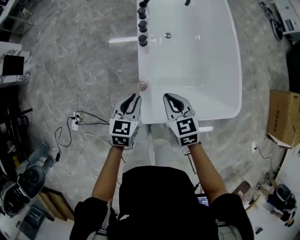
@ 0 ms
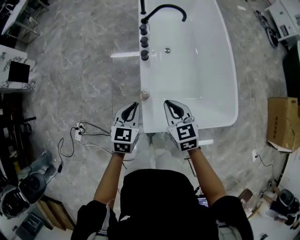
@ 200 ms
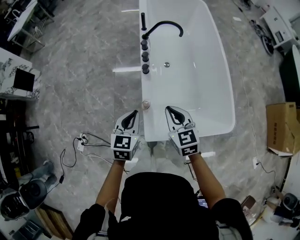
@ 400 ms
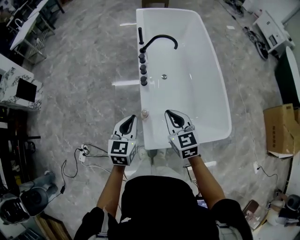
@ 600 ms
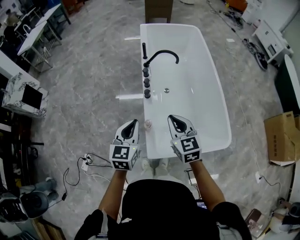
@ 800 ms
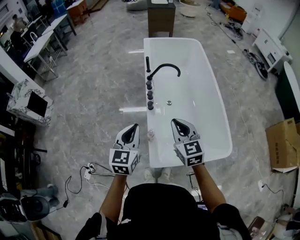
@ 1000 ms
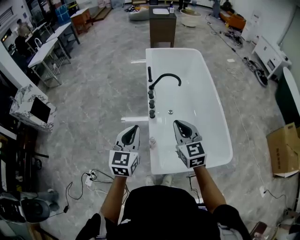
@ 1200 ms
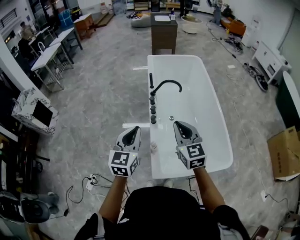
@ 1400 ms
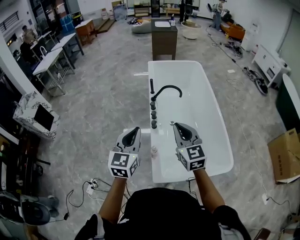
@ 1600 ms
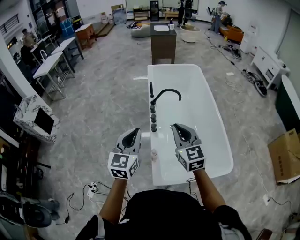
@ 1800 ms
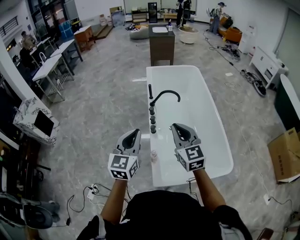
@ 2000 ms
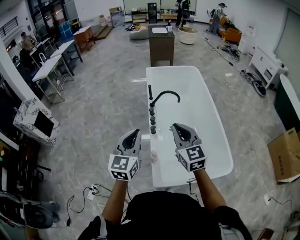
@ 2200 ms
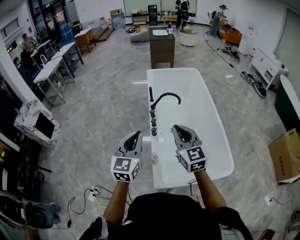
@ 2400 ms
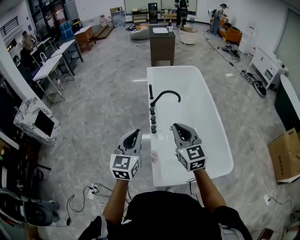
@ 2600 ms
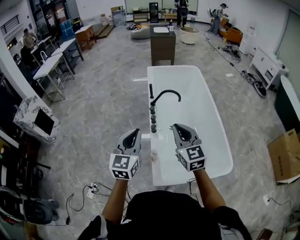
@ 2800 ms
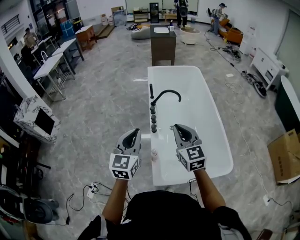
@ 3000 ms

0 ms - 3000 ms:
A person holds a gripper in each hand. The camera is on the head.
0 ms - 1600 ms: Both grippers travel together upward, roughly 35 cm. The right gripper changes its angle by roughly 30 degrees. Meanwhile the left gripper turns by roughly 30 degrees.
1600 ms - 3000 ms: The grippers move only a little.

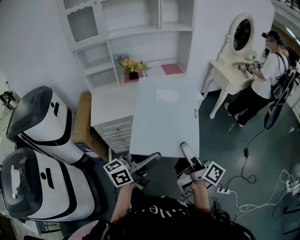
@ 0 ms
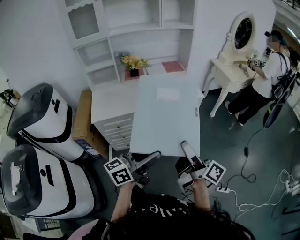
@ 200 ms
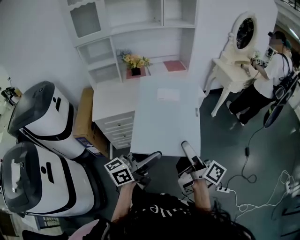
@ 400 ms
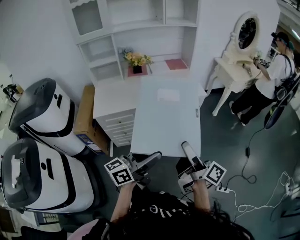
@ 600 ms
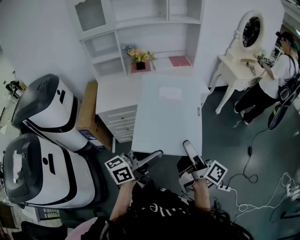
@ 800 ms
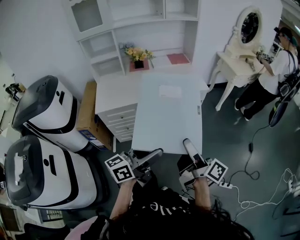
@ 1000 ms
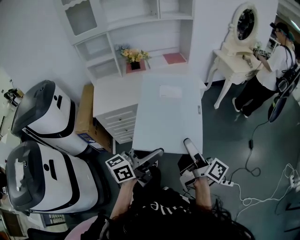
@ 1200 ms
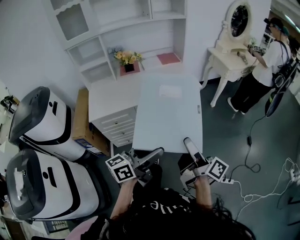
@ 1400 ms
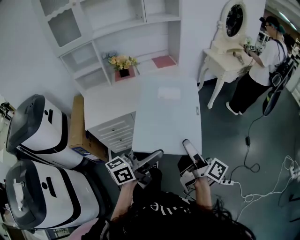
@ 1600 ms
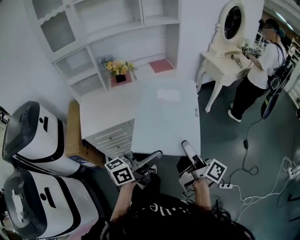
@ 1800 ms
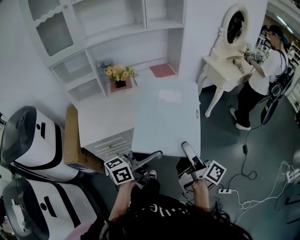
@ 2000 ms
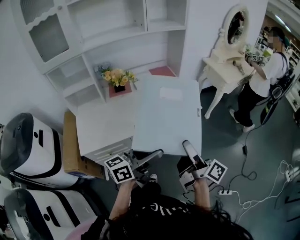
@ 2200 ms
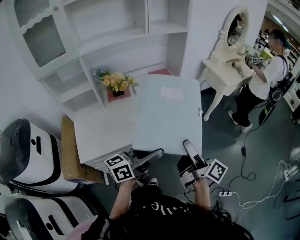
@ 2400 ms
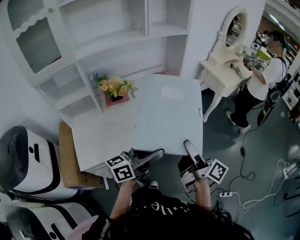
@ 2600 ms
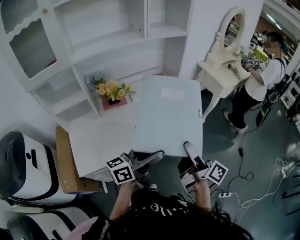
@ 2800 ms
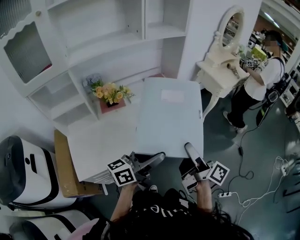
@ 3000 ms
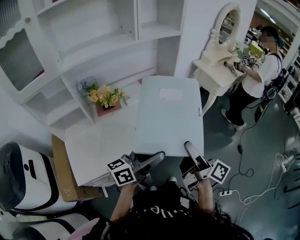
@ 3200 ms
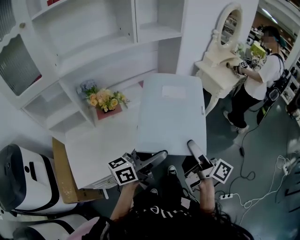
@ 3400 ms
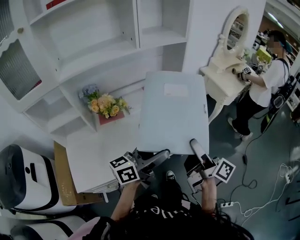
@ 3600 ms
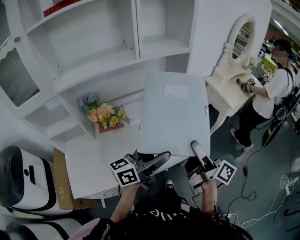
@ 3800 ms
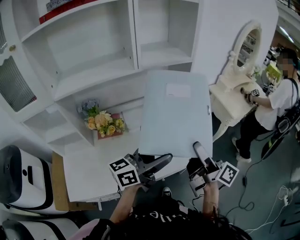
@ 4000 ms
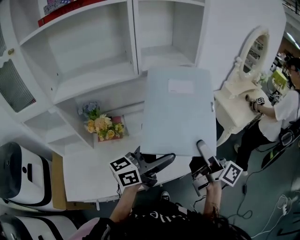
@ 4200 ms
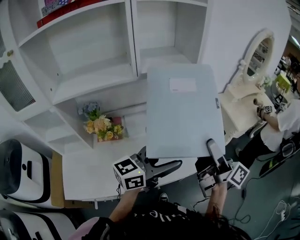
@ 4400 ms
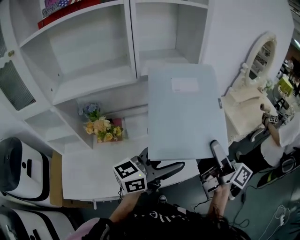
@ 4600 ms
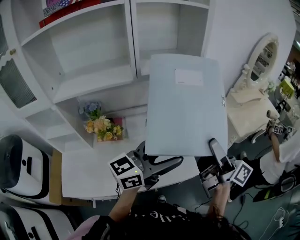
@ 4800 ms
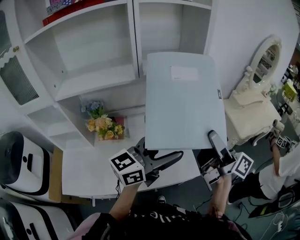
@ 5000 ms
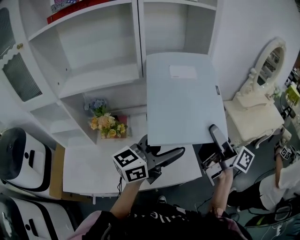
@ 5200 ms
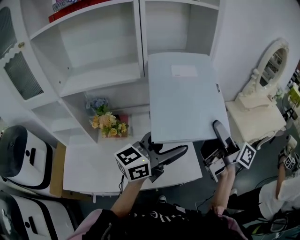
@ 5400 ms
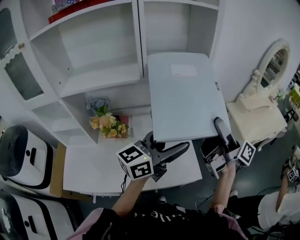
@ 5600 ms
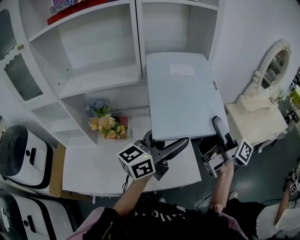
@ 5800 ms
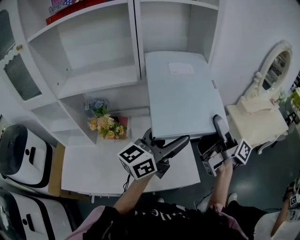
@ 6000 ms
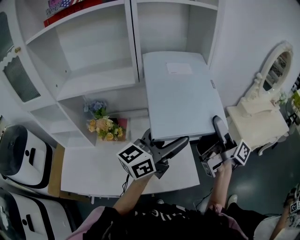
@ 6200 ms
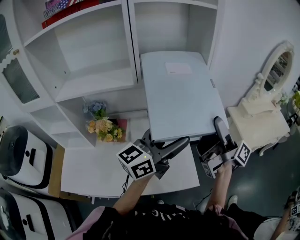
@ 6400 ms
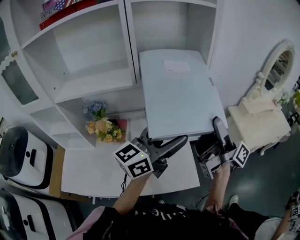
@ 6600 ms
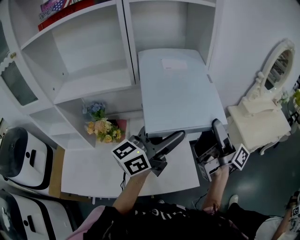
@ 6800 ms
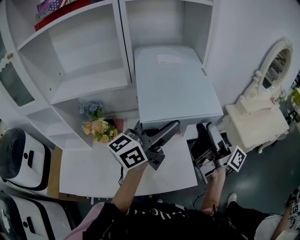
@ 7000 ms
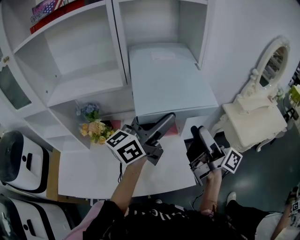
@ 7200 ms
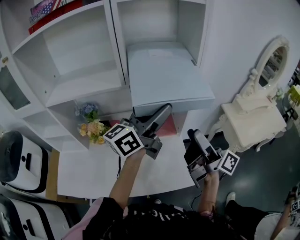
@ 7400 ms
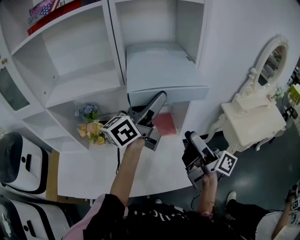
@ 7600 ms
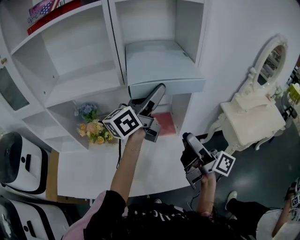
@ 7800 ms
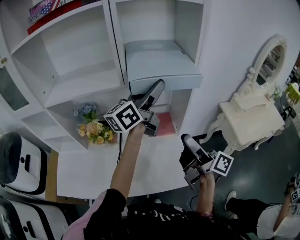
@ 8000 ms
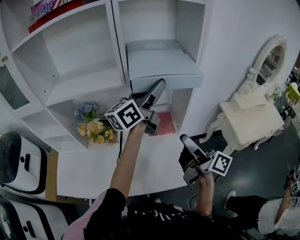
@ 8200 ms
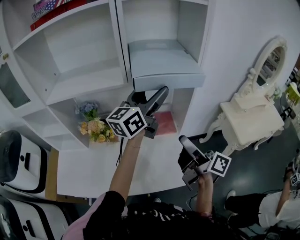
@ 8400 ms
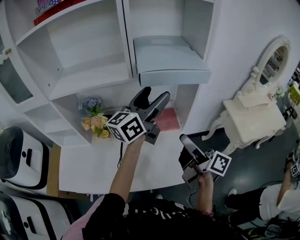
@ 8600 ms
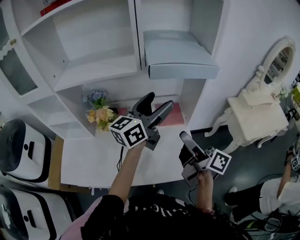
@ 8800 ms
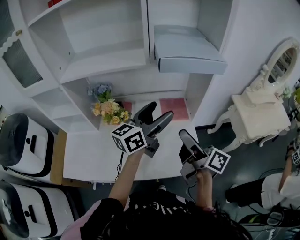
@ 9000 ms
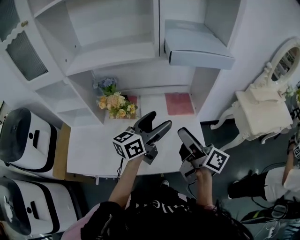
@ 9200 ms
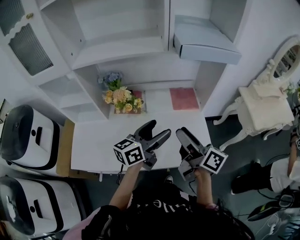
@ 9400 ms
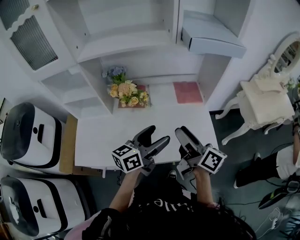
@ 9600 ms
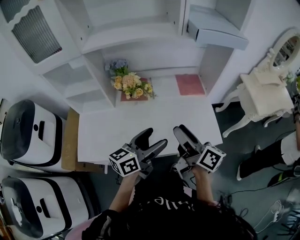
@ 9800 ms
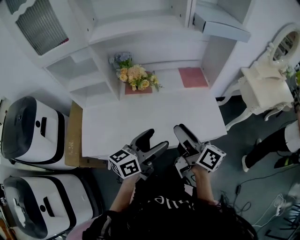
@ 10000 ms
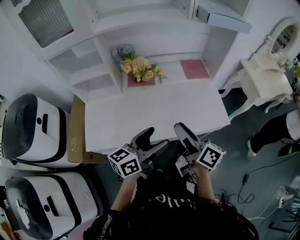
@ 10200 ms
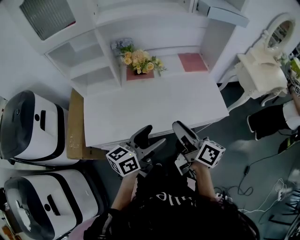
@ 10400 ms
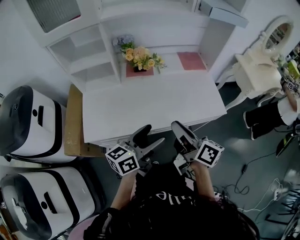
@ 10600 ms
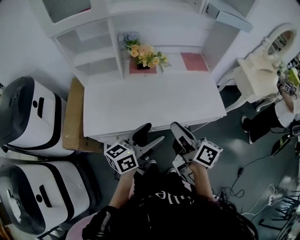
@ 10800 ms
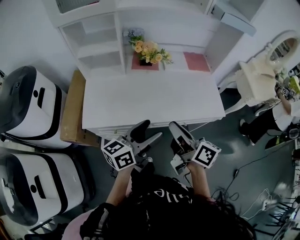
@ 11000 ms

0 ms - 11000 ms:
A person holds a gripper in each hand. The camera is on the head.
0 ms - 1600 ms: The right gripper moves about 5 cm; the left gripper ends up approximately 5 cm from where it was.
1600 ms - 3200 ms: The right gripper heads forward and to the left, covering some 35 cm. The left gripper heads forward, covering some 35 cm.
3200 ms - 4800 ms: The grippers both shift forward and upward by approximately 30 cm. The left gripper rotates about 30 degrees, while the right gripper turns by roughly 20 degrees.
4800 ms - 6200 ms: The two grippers go about 10 cm forward.
6200 ms - 7800 ms: The right gripper shifts some 5 cm downward. Meanwhile the left gripper travels forward and upward by about 15 cm.
7800 ms - 9400 ms: The right gripper shifts approximately 20 cm to the left, backward and downward. Meanwhile the left gripper heads downward, backward and to the left, covering some 30 cm, and rotates approximately 20 degrees.
9400 ms - 11000 ms: The two grippers go some 30 cm backward and to the left. The right gripper closes.

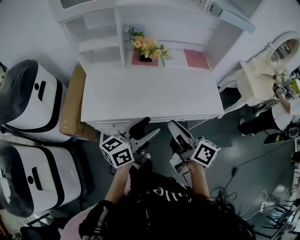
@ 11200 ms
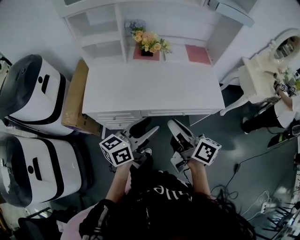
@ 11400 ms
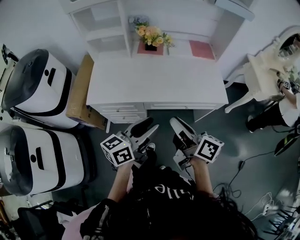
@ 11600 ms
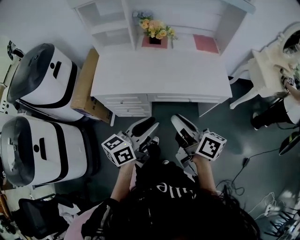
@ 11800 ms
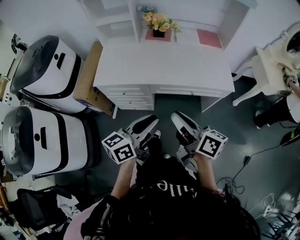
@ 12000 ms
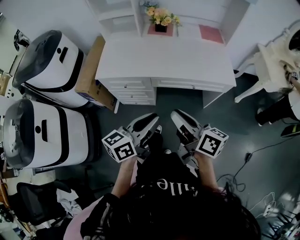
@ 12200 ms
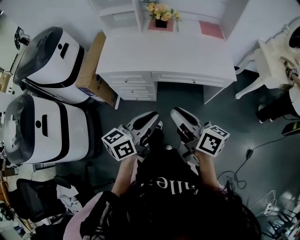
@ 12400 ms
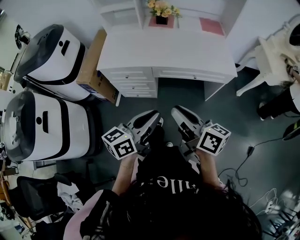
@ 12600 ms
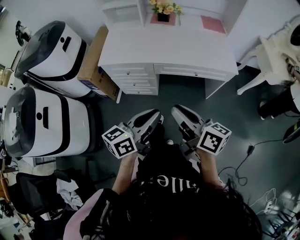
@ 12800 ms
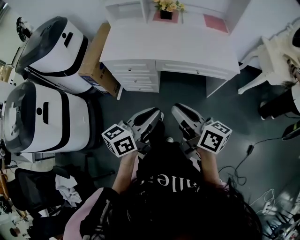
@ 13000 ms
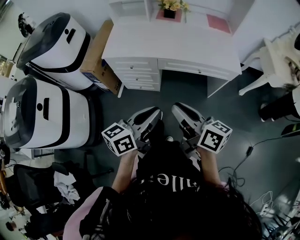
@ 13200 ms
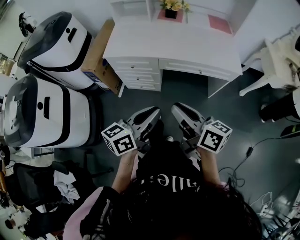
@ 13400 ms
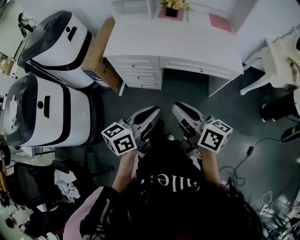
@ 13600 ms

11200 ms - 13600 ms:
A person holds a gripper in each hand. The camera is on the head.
11200 ms - 12400 ms: The two grippers go about 20 cm backward. The left gripper closes up.
12400 ms - 13600 ms: Both grippers travel together backward, some 5 cm.

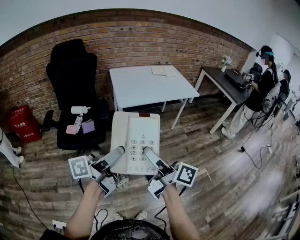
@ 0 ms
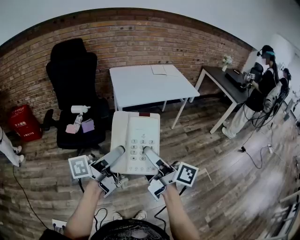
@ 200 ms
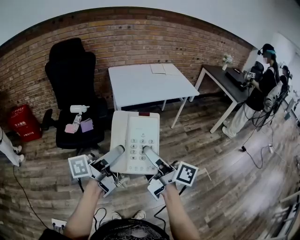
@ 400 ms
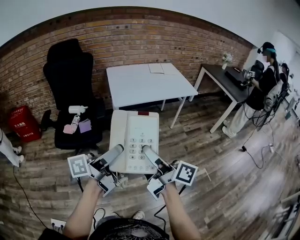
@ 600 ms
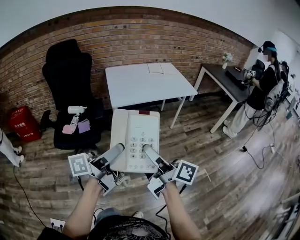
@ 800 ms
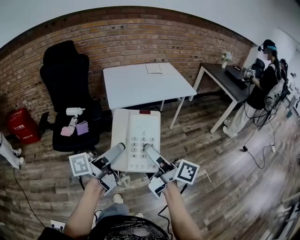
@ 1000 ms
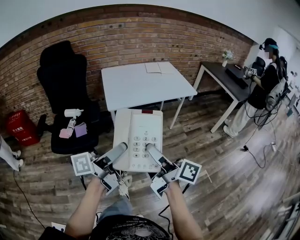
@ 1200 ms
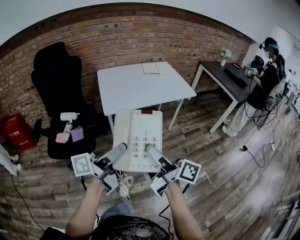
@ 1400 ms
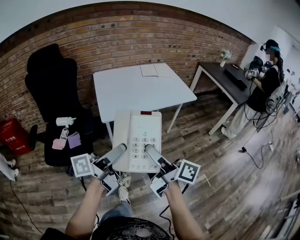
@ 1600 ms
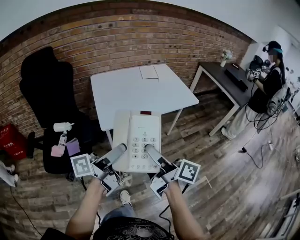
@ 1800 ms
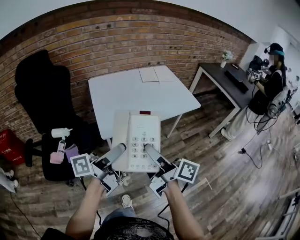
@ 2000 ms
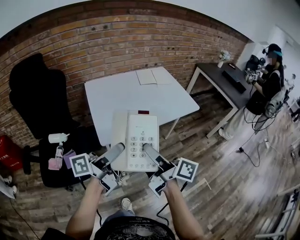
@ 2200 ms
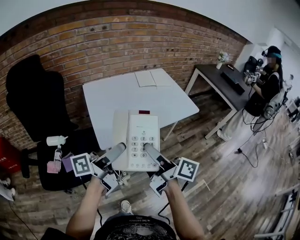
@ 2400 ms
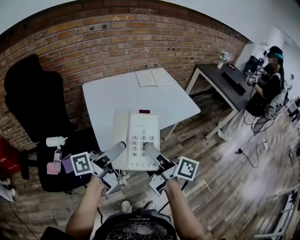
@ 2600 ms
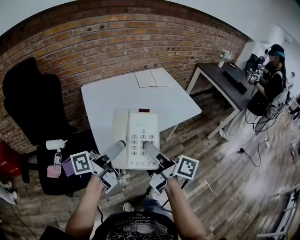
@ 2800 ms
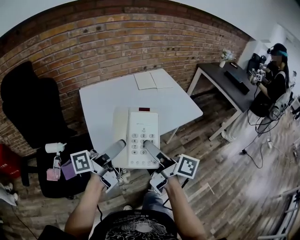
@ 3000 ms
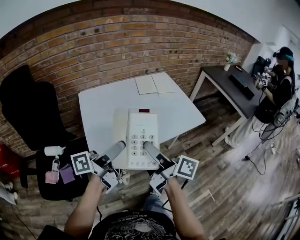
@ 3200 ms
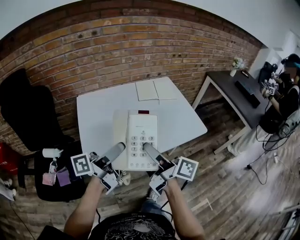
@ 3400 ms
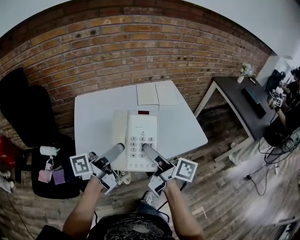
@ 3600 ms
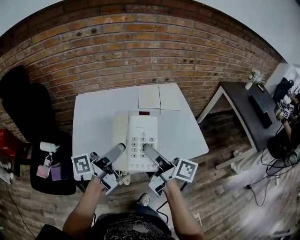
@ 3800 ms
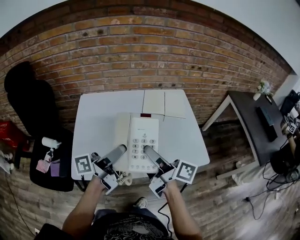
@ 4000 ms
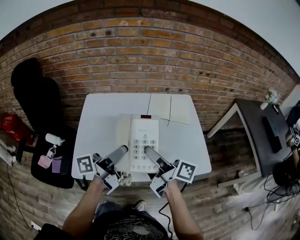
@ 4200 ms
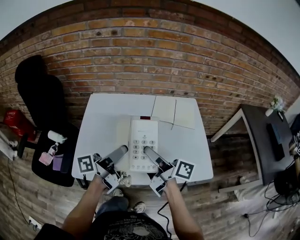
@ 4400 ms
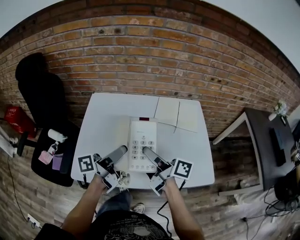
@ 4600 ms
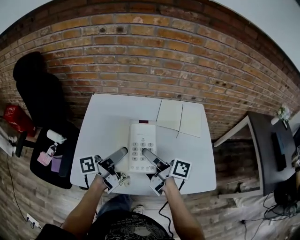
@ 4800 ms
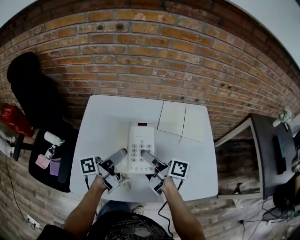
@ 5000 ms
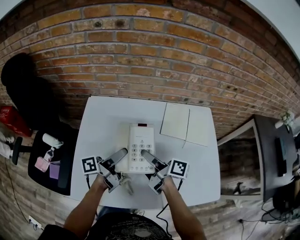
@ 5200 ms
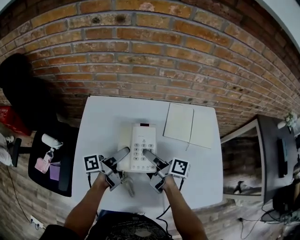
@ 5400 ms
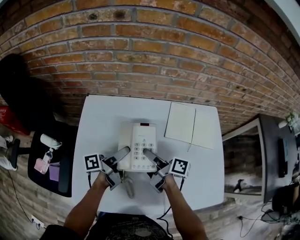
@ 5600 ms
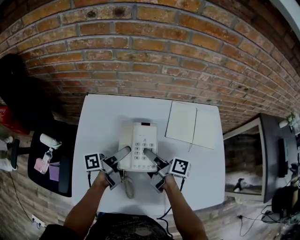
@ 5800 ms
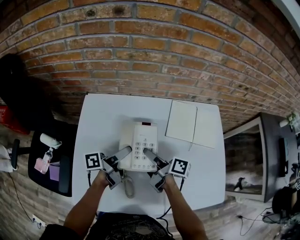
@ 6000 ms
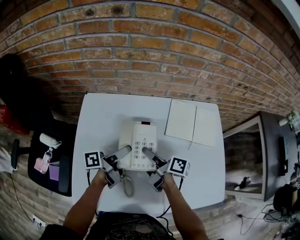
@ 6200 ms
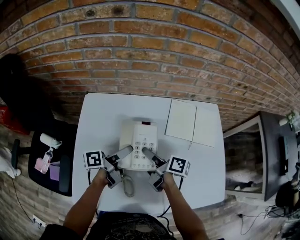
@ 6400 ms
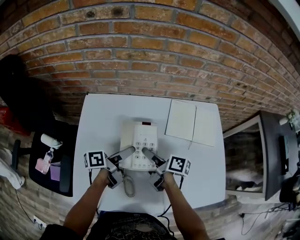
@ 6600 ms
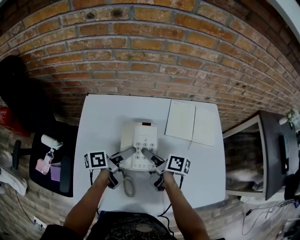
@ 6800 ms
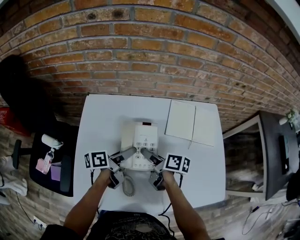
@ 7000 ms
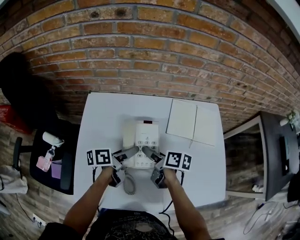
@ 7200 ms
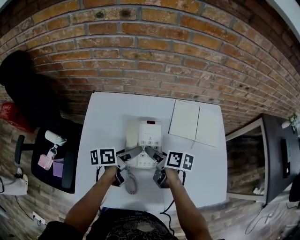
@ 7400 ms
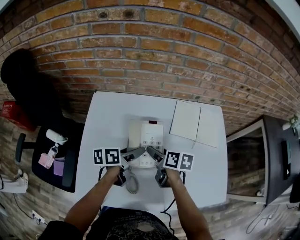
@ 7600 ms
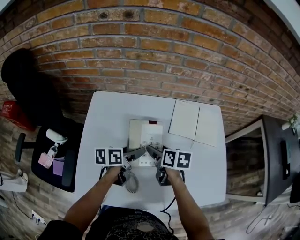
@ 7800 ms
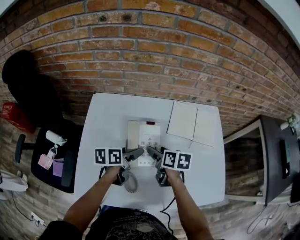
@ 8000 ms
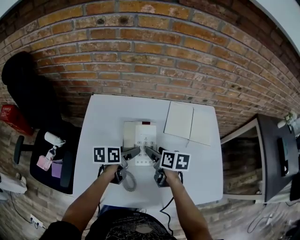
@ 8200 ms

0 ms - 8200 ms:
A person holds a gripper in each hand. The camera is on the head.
0 ms - 1600 ms: Both grippers move forward, about 20 cm.
1600 ms - 3200 ms: Both grippers move forward, about 30 cm.
3200 ms - 5000 ms: The left gripper moves approximately 30 cm, and turns by about 30 degrees; the right gripper changes place by about 35 cm, and rotates roughly 30 degrees.
5000 ms - 6600 ms: Both grippers travel together downward and forward, roughly 15 cm.
6600 ms - 8200 ms: The left gripper swivels some 30 degrees, while the right gripper turns by approximately 40 degrees.
